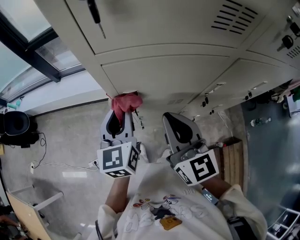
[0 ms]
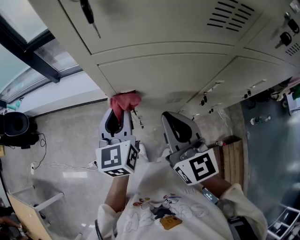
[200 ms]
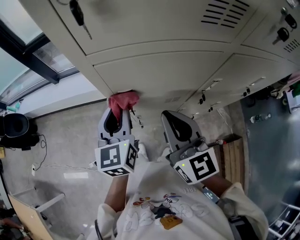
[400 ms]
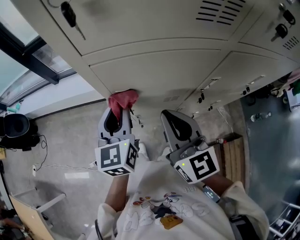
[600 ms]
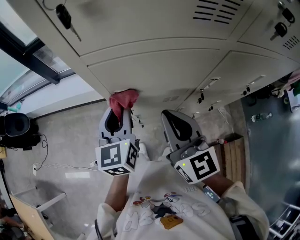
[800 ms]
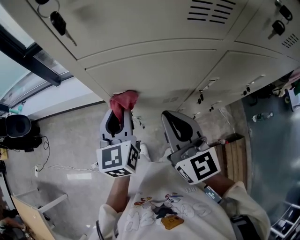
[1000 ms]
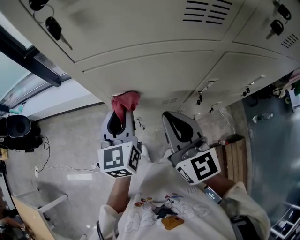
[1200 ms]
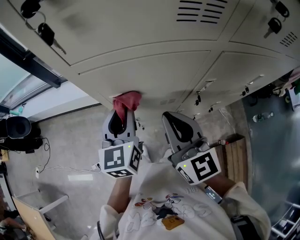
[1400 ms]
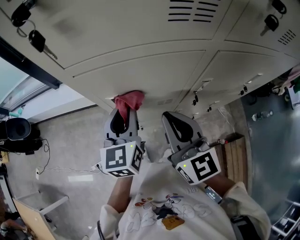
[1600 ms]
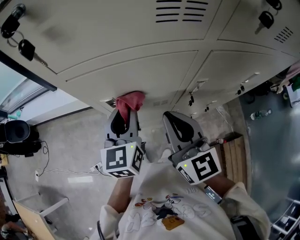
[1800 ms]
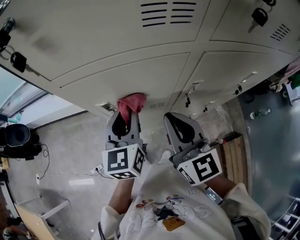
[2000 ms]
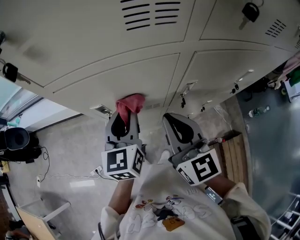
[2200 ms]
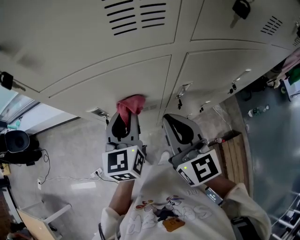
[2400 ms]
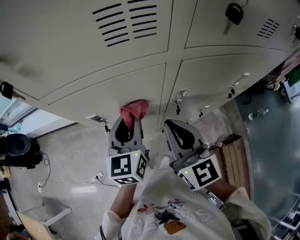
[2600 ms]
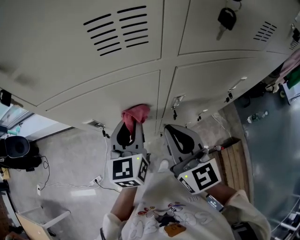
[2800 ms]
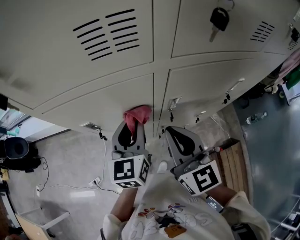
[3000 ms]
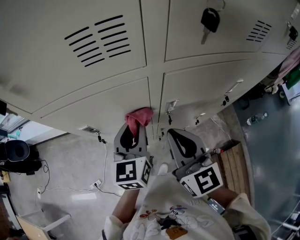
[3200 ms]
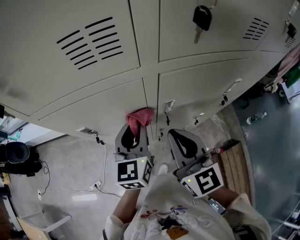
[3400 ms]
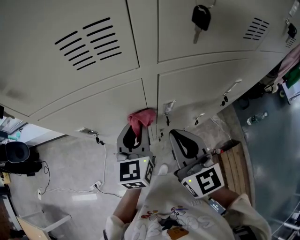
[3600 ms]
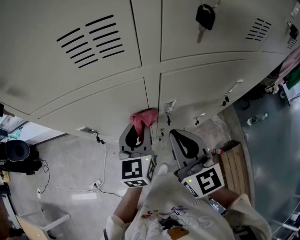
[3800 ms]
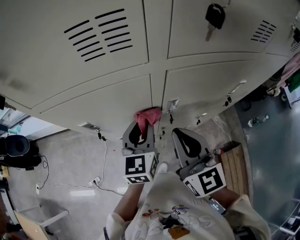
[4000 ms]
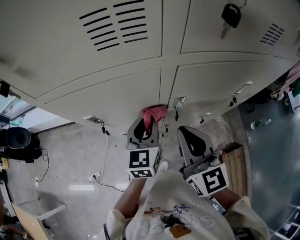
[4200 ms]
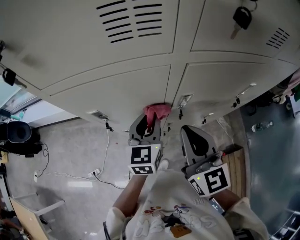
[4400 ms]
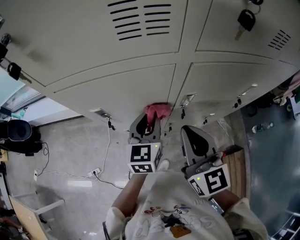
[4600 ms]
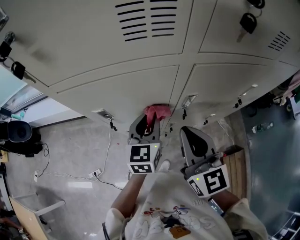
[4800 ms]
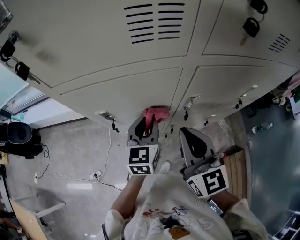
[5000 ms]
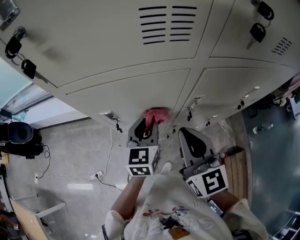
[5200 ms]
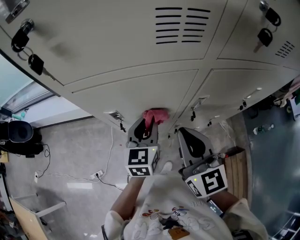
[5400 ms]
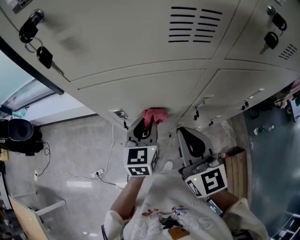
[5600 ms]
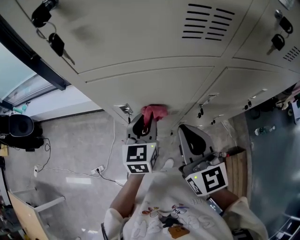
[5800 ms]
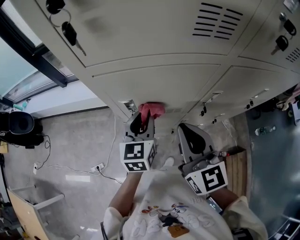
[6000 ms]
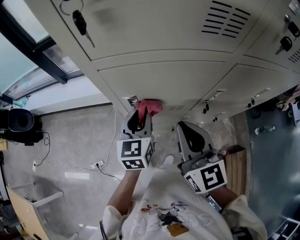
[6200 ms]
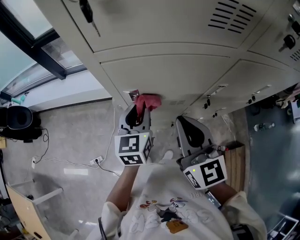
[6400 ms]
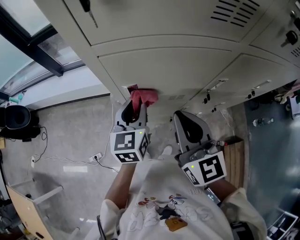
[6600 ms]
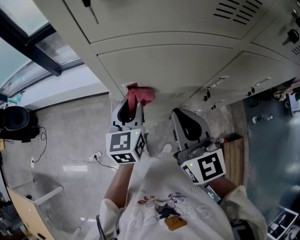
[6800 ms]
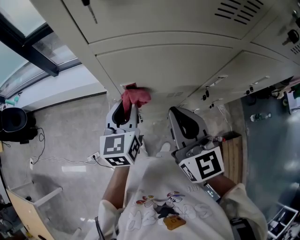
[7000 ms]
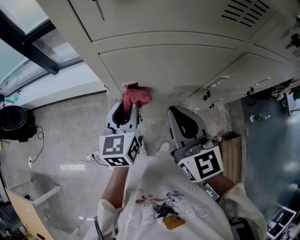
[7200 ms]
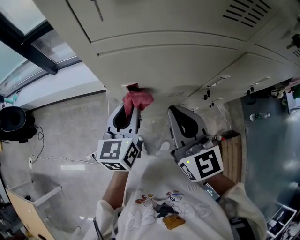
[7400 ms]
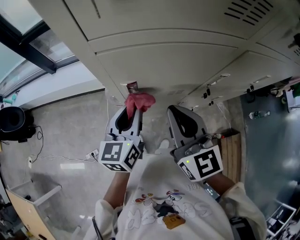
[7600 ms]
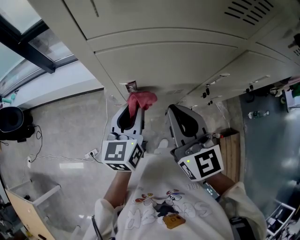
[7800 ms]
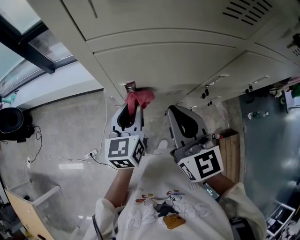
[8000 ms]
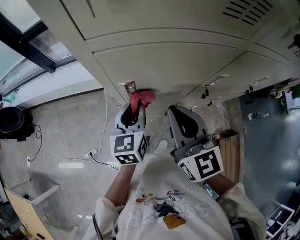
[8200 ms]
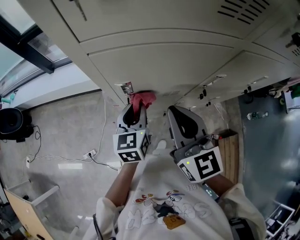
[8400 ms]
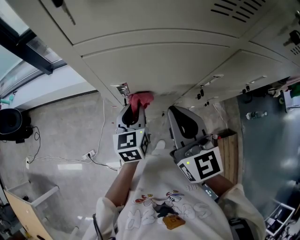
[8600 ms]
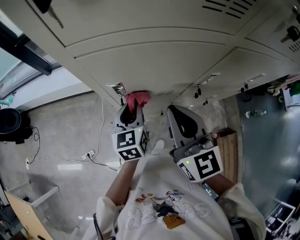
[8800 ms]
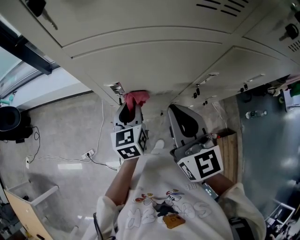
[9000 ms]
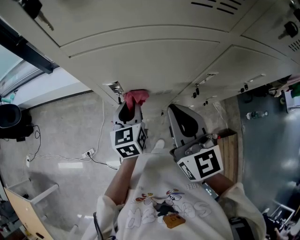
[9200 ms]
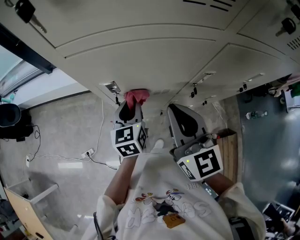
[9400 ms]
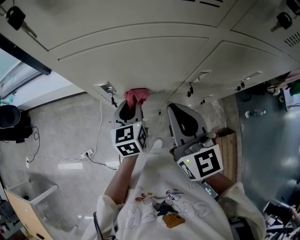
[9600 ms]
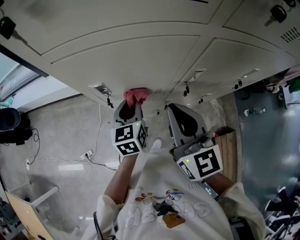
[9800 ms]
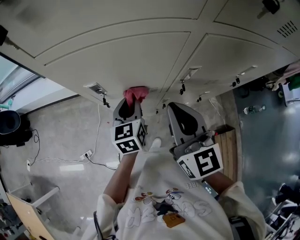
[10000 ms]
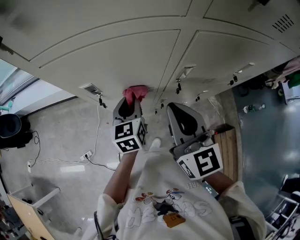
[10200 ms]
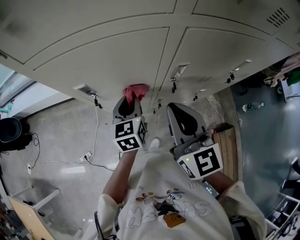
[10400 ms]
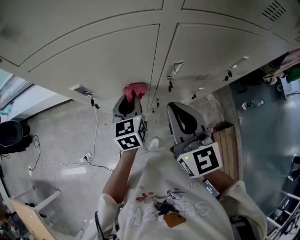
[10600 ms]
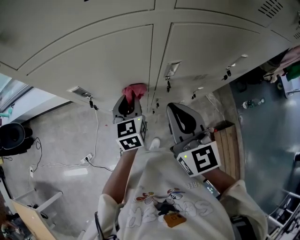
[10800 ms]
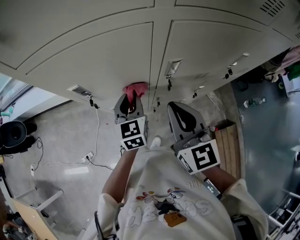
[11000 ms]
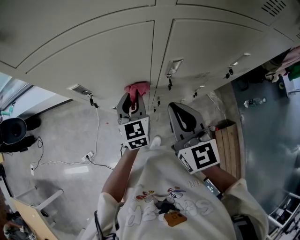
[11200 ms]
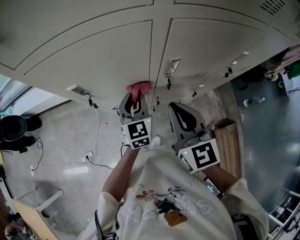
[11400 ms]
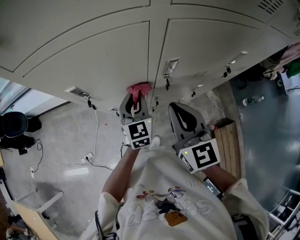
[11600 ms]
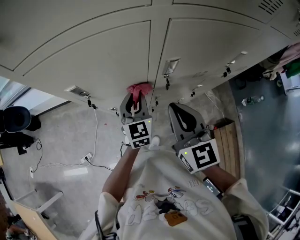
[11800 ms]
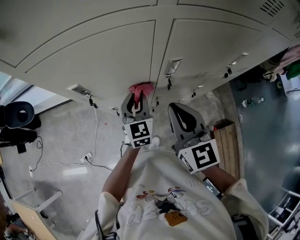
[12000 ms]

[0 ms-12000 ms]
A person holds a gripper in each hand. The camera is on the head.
0 ms to 1600 ms: The grippers both shift to the right by some 5 cm.
1600 ms to 3000 ms: The grippers both shift to the right by some 10 cm.
3000 ms to 4400 ms: The left gripper goes some 5 cm downward.
4400 ms to 6000 ms: Both grippers travel together to the left, about 10 cm.
6000 ms to 7600 ms: The right gripper changes place by roughly 5 cm. The left gripper goes about 5 cm to the left.
7600 ms to 9000 ms: The left gripper shifts some 5 cm downward.
9000 ms to 10400 ms: Both grippers move to the right, approximately 10 cm.
10400 ms to 12000 ms: The right gripper changes place by roughly 5 cm. Meanwhile the left gripper shifts by approximately 5 cm.

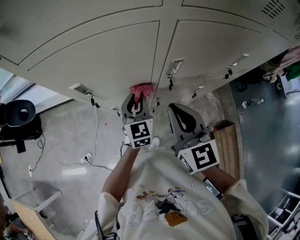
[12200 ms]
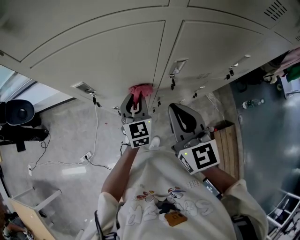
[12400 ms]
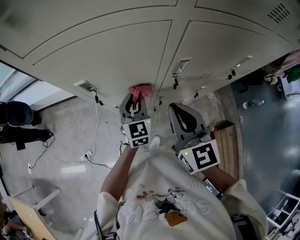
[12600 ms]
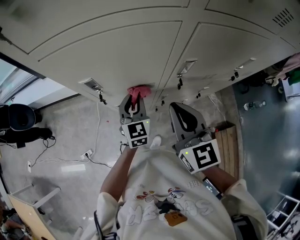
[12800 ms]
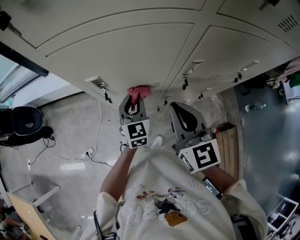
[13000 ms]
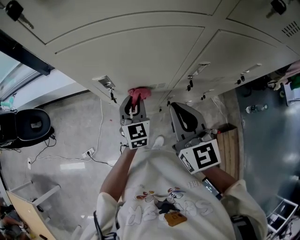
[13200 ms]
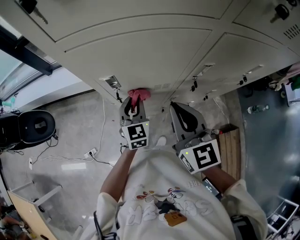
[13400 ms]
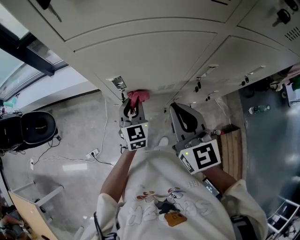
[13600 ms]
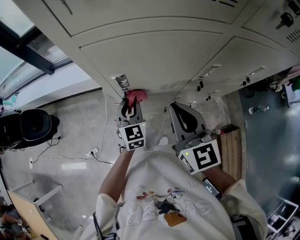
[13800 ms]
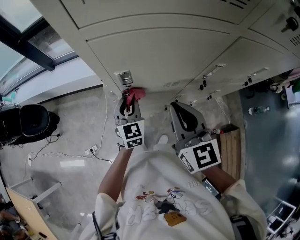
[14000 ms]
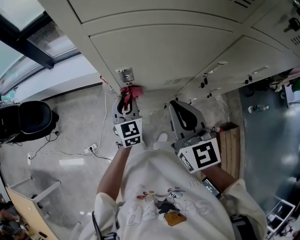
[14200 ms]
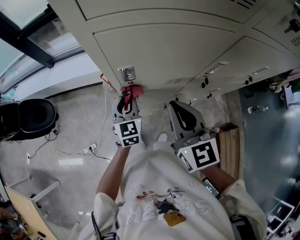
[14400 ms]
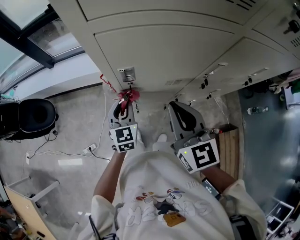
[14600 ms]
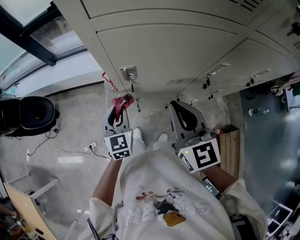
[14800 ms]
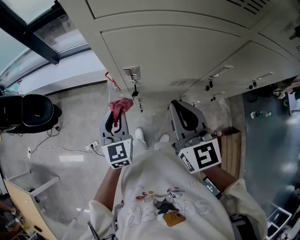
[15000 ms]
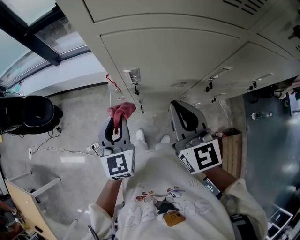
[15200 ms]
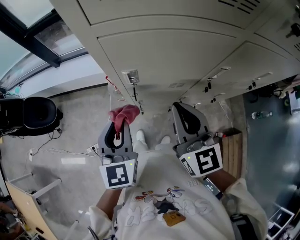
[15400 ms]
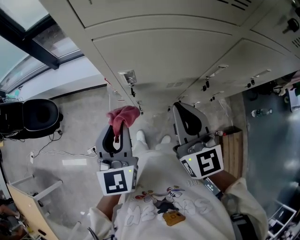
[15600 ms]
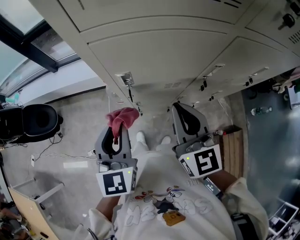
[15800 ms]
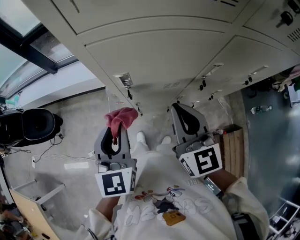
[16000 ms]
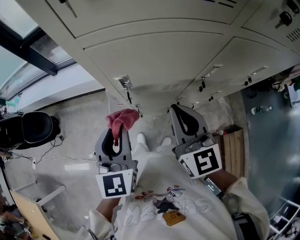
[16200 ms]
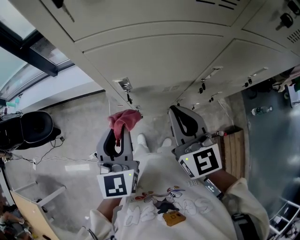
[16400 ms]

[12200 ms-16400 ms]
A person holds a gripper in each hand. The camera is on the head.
12200 ms to 13600 ms: The grippers both shift to the left by roughly 10 cm.
13600 ms to 15000 ms: The left gripper goes approximately 15 cm to the left and backward.
15000 ms to 16400 ms: The left gripper travels upward by roughly 10 cm.

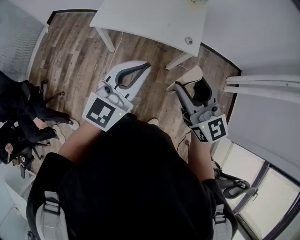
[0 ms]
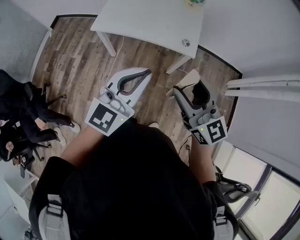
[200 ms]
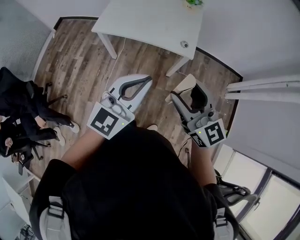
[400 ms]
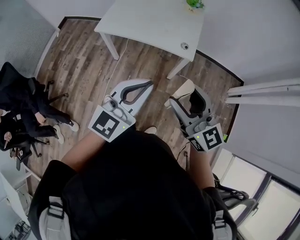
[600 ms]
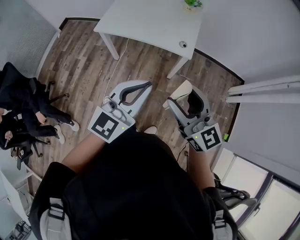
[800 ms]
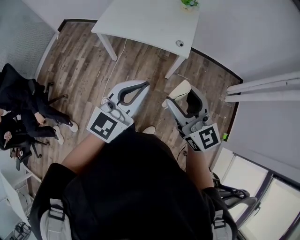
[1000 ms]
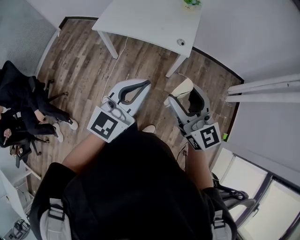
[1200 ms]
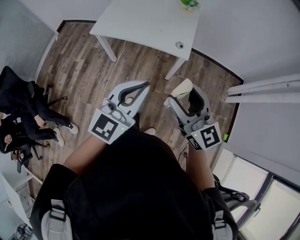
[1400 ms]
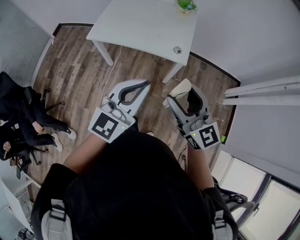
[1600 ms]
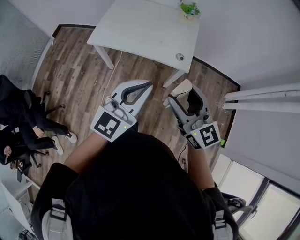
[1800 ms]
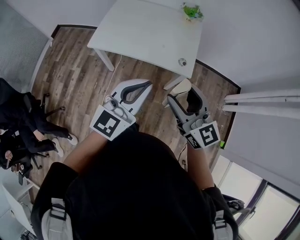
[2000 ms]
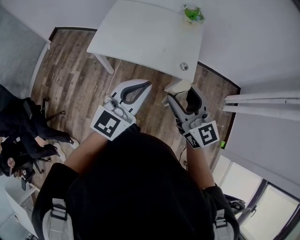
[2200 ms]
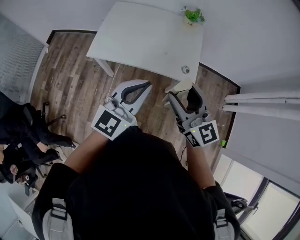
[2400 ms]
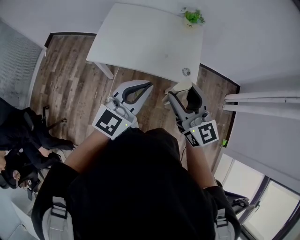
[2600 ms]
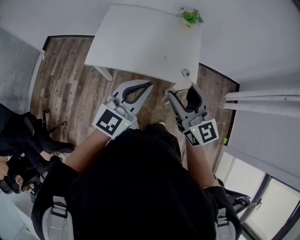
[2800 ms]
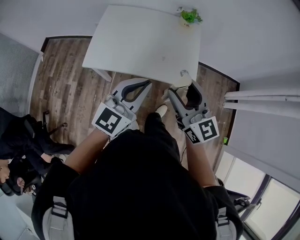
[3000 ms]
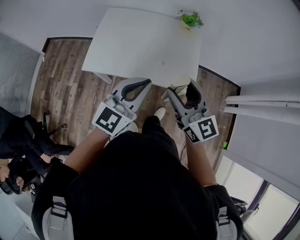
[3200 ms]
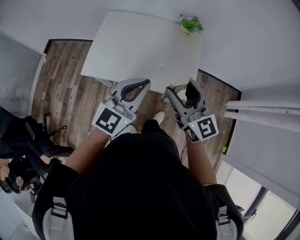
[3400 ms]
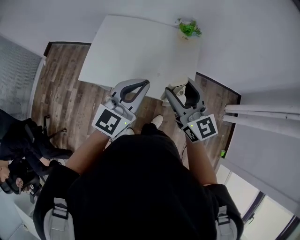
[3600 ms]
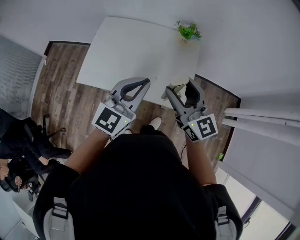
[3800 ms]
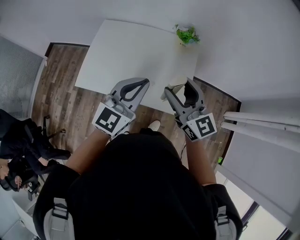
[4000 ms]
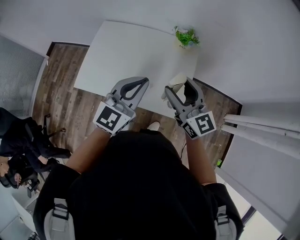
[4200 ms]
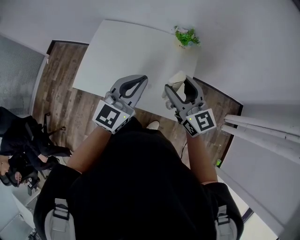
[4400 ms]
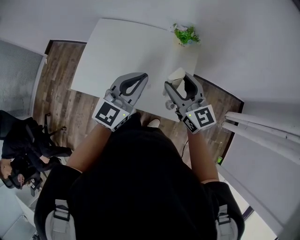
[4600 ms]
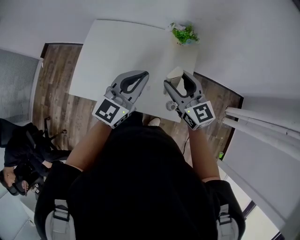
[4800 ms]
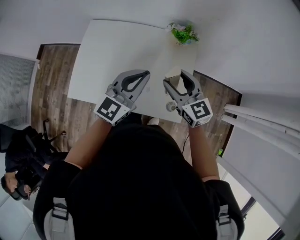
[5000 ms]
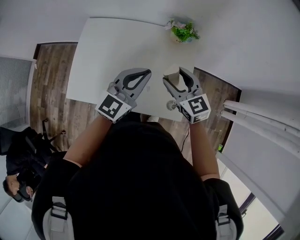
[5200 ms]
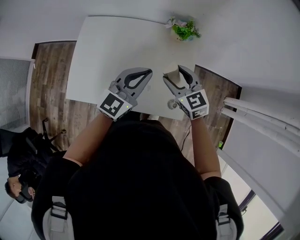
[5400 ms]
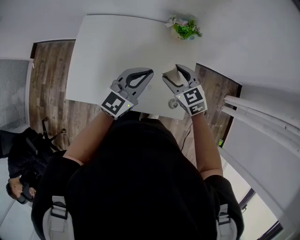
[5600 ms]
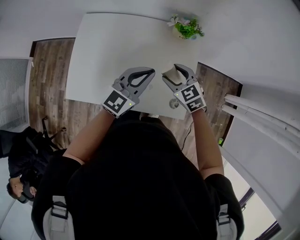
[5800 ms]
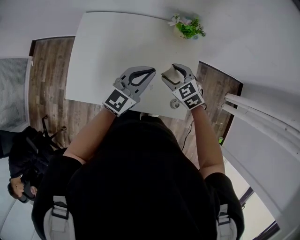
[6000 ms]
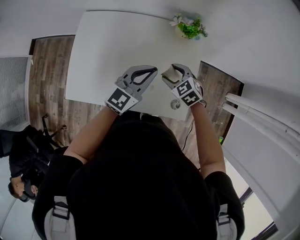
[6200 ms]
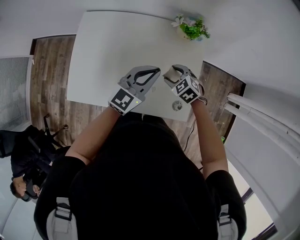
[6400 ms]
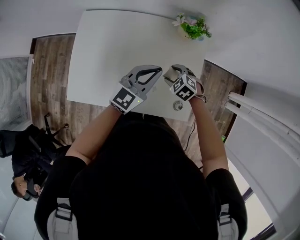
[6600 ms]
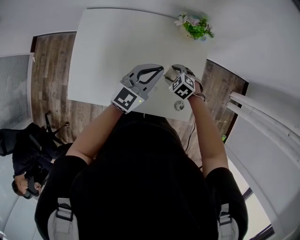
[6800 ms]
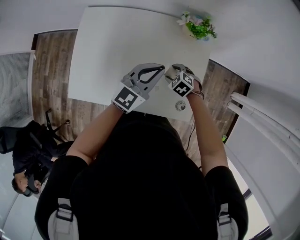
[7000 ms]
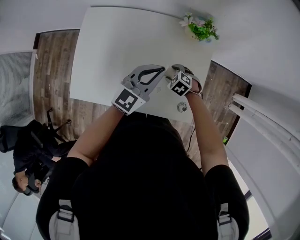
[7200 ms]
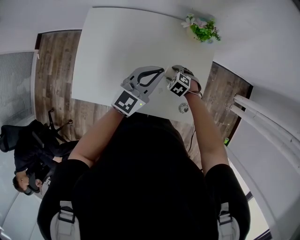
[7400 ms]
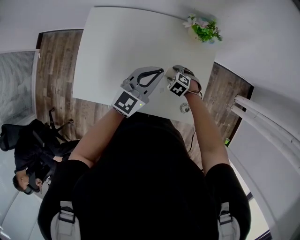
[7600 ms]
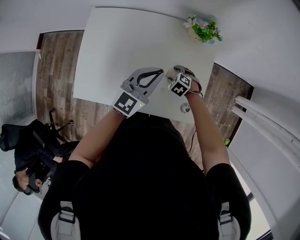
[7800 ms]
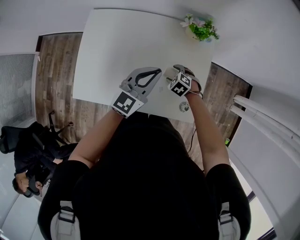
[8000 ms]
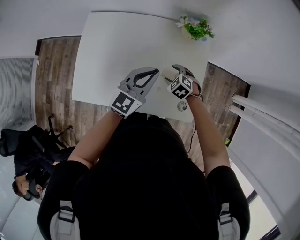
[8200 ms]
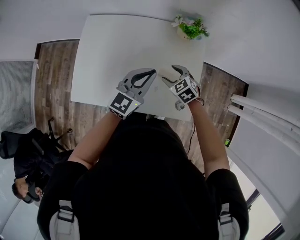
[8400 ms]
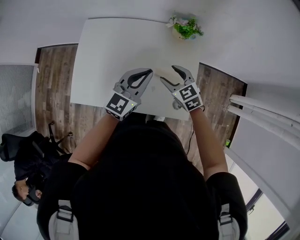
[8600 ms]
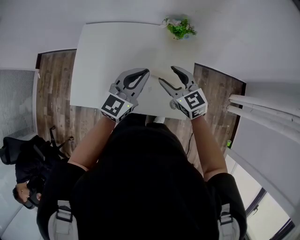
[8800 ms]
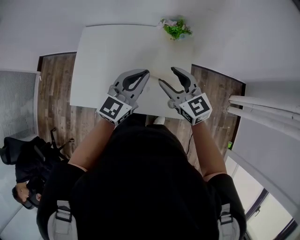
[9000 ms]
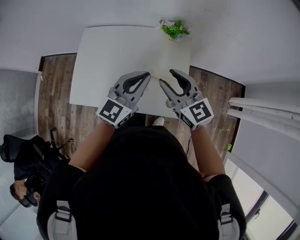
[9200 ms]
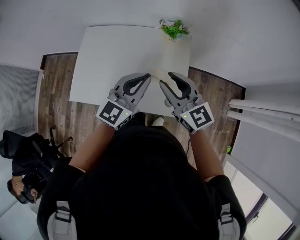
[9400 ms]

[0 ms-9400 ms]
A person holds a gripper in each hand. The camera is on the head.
0 ms to 1600 ms: Both grippers travel together to the right, some 10 cm. The right gripper travels backward and back again, about 10 cm each way.
1600 ms to 3200 ms: The grippers both shift forward by roughly 30 cm.
3200 ms to 4800 ms: Both grippers move forward, roughly 25 cm.
4800 ms to 6200 ms: The right gripper shifts approximately 20 cm downward, and points its fingers approximately 40 degrees further downward; the left gripper moves downward and forward, some 15 cm.
6200 ms to 7800 ms: The right gripper heads downward, covering some 15 cm, and swivels about 20 degrees.
7800 ms to 9400 ms: The left gripper goes some 20 cm upward, backward and to the right, while the right gripper is displaced upward by about 40 cm, points its fingers some 70 degrees further upward, and closes its fingers.
